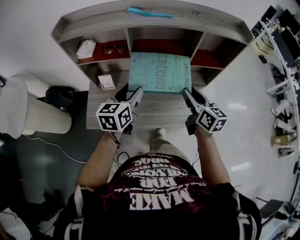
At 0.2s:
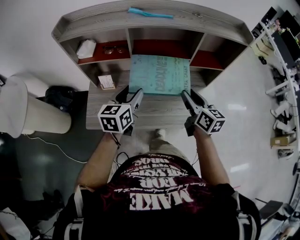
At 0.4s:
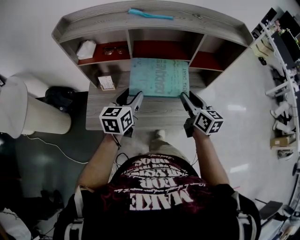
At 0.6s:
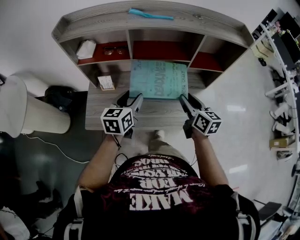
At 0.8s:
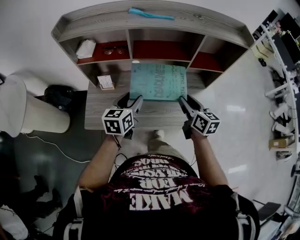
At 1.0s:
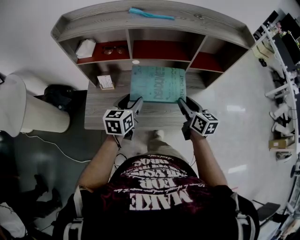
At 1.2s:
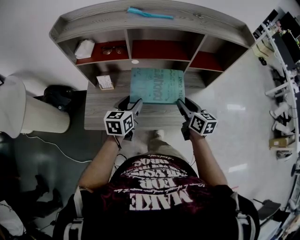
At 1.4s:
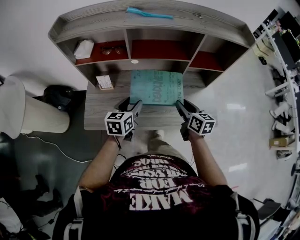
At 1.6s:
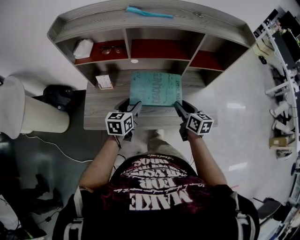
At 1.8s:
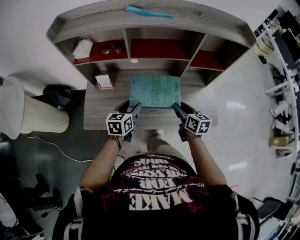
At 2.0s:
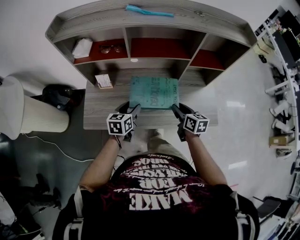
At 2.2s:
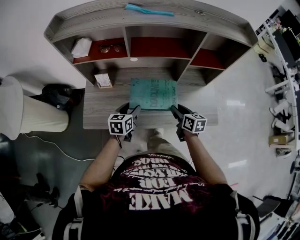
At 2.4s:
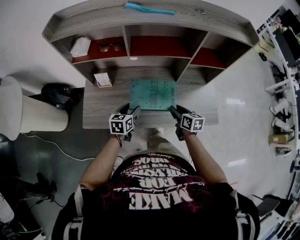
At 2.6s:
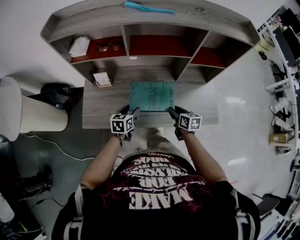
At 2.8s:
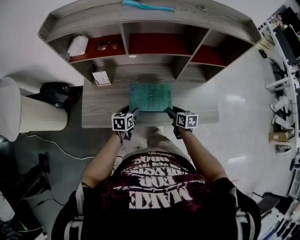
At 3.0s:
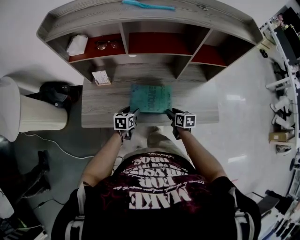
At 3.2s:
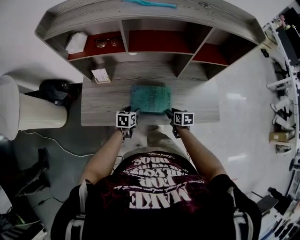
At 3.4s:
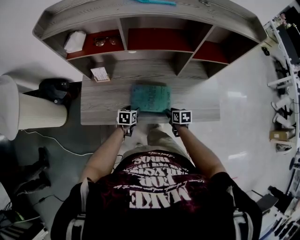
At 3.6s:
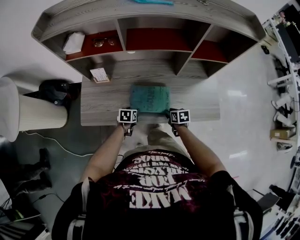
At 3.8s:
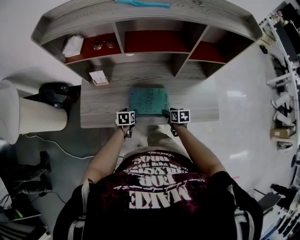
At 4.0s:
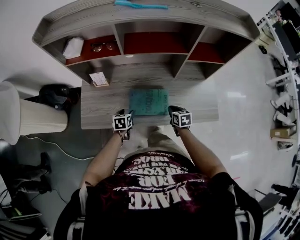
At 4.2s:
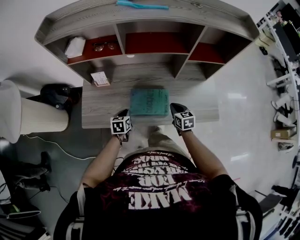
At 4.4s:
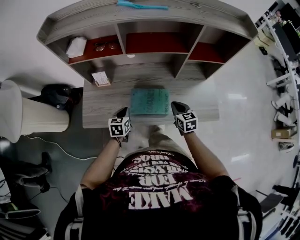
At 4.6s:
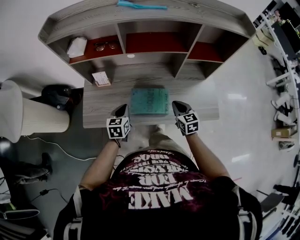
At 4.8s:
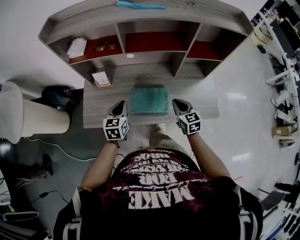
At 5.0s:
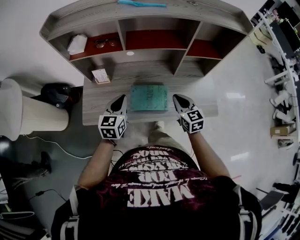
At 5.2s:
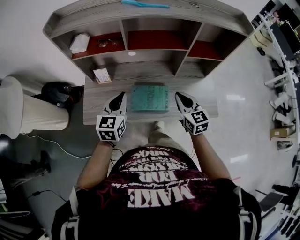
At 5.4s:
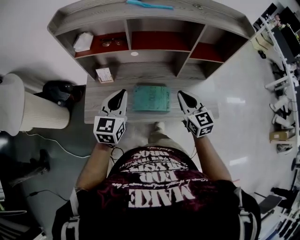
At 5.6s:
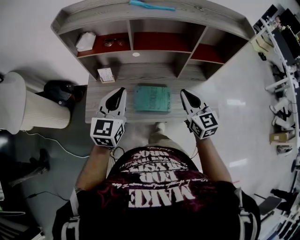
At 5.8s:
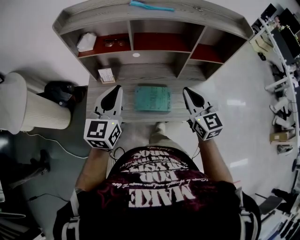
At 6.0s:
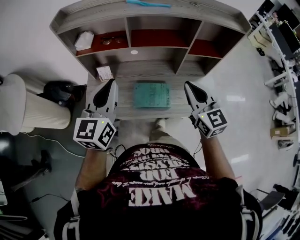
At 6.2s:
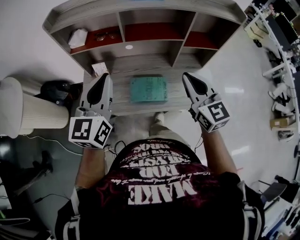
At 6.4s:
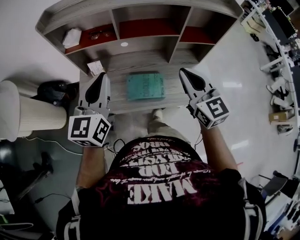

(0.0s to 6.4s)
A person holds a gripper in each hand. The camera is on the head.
0.0s - 1.6s: The two grippers go some 15 cm downward.
1.6s - 3.2s: Both grippers move downward, roughly 20 cm. The right gripper changes its angle by about 30 degrees; the left gripper rotates approximately 20 degrees.
3.2s - 4.8s: Both grippers travel together upward, some 15 cm. The left gripper swivels about 30 degrees, and closes. The right gripper rotates some 40 degrees, and closes its fingers.
4.8s - 6.4s: Both grippers travel together upward, some 25 cm. The right gripper rotates about 20 degrees. The left gripper changes its angle by about 30 degrees.

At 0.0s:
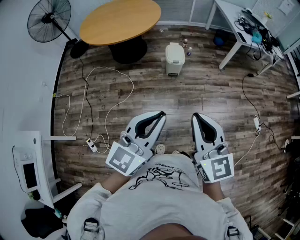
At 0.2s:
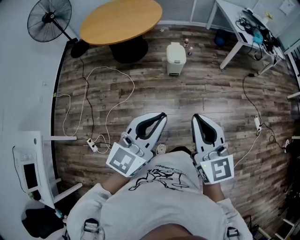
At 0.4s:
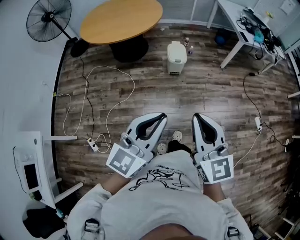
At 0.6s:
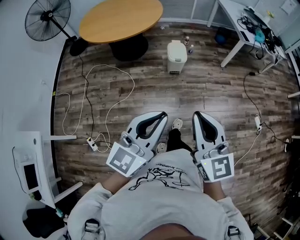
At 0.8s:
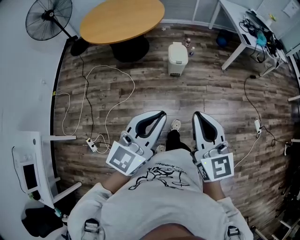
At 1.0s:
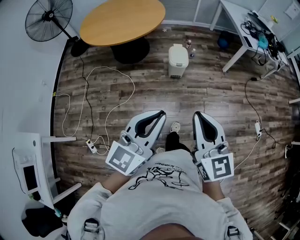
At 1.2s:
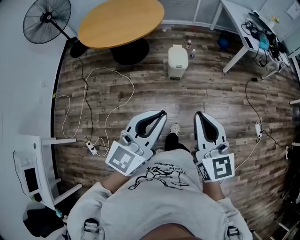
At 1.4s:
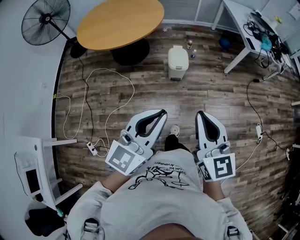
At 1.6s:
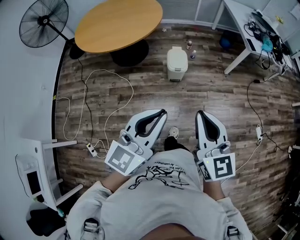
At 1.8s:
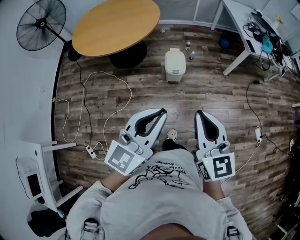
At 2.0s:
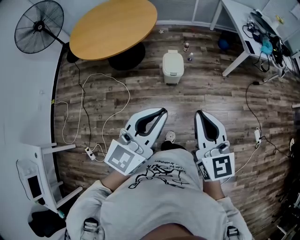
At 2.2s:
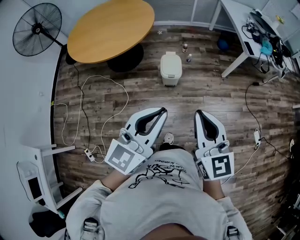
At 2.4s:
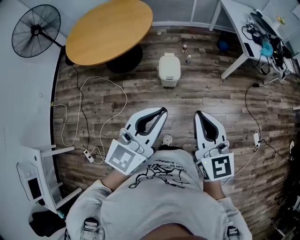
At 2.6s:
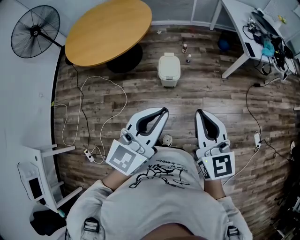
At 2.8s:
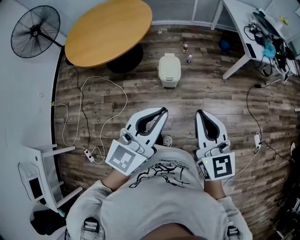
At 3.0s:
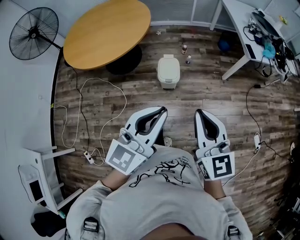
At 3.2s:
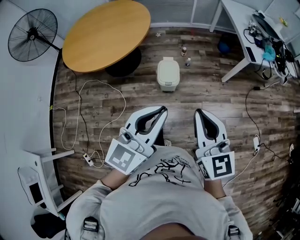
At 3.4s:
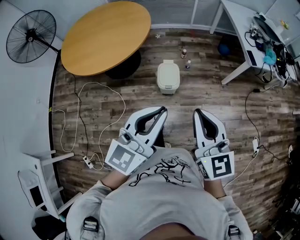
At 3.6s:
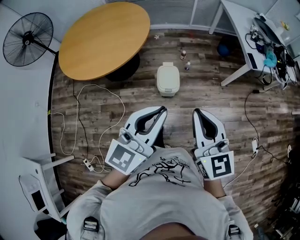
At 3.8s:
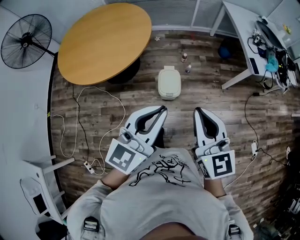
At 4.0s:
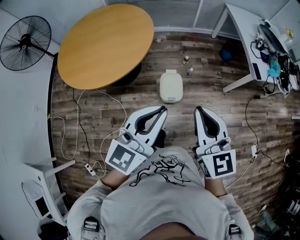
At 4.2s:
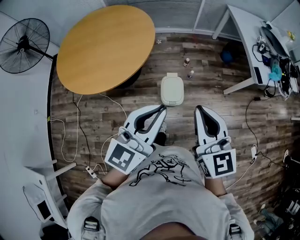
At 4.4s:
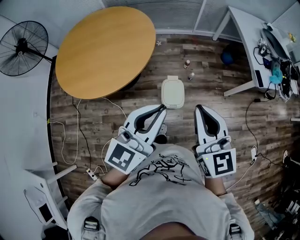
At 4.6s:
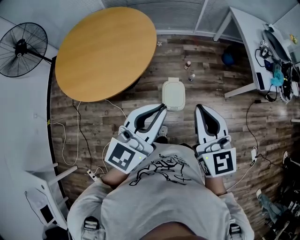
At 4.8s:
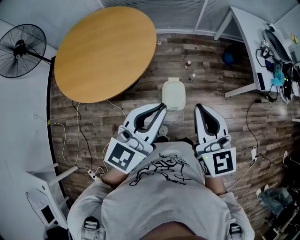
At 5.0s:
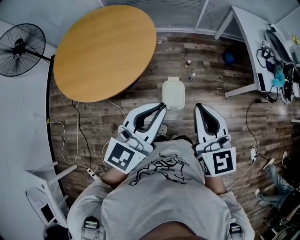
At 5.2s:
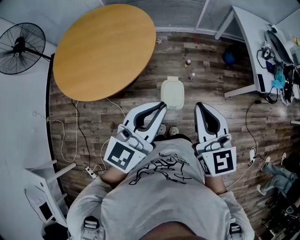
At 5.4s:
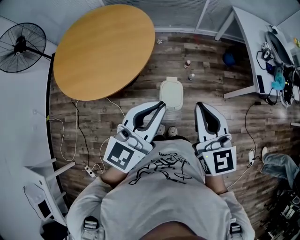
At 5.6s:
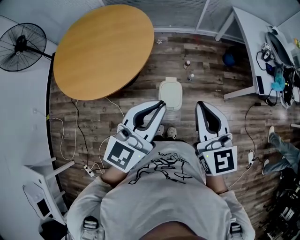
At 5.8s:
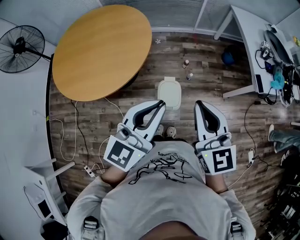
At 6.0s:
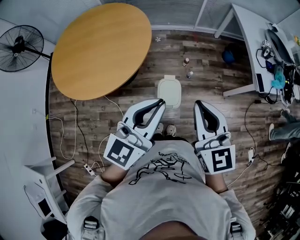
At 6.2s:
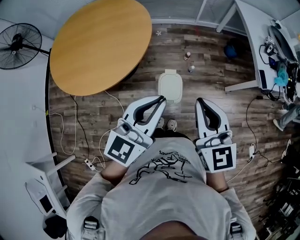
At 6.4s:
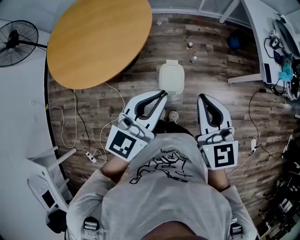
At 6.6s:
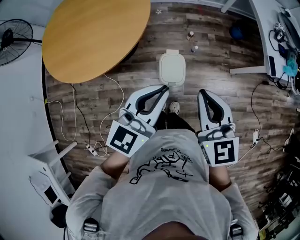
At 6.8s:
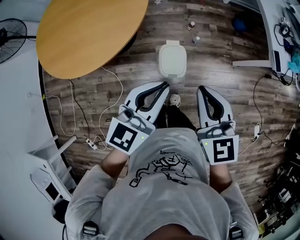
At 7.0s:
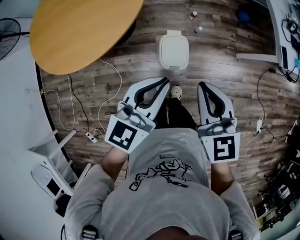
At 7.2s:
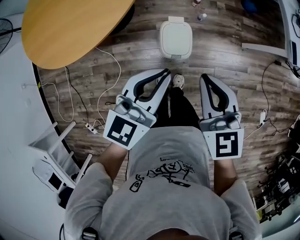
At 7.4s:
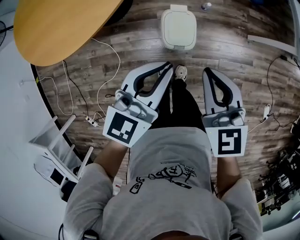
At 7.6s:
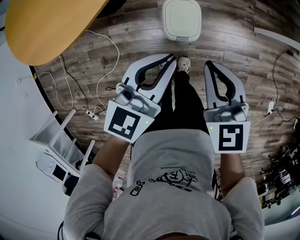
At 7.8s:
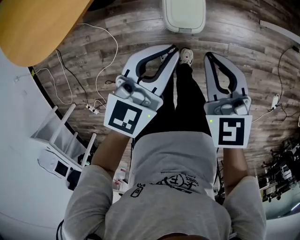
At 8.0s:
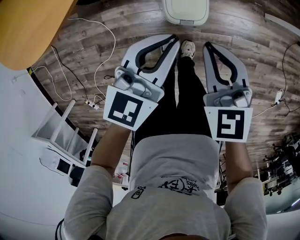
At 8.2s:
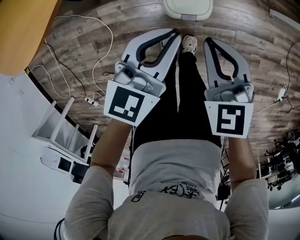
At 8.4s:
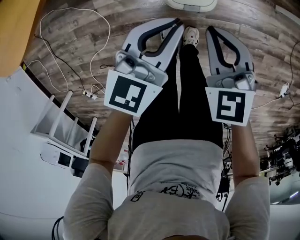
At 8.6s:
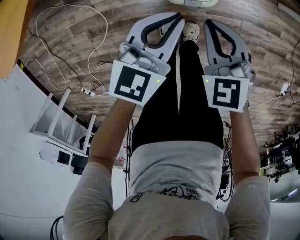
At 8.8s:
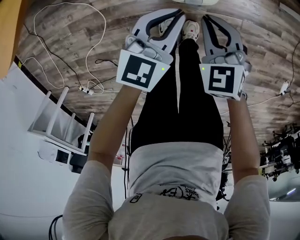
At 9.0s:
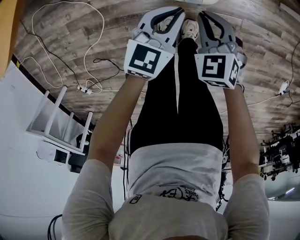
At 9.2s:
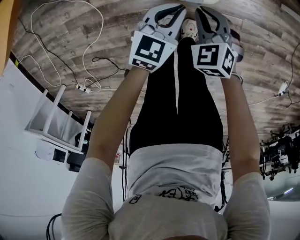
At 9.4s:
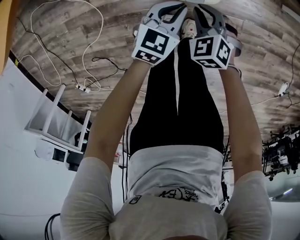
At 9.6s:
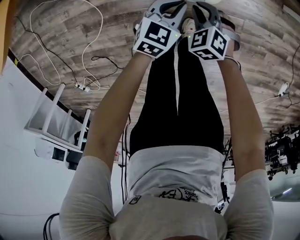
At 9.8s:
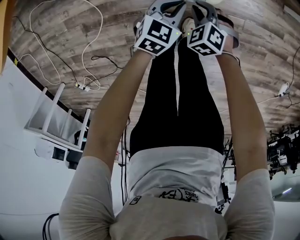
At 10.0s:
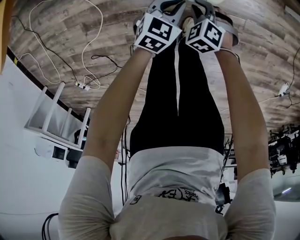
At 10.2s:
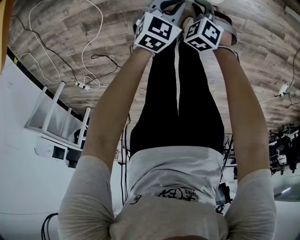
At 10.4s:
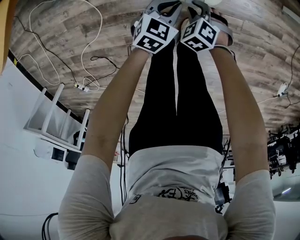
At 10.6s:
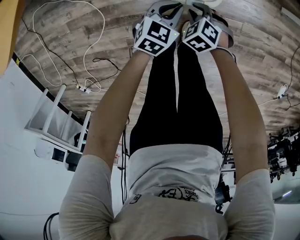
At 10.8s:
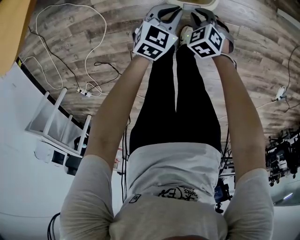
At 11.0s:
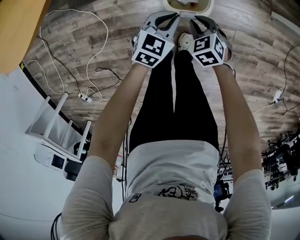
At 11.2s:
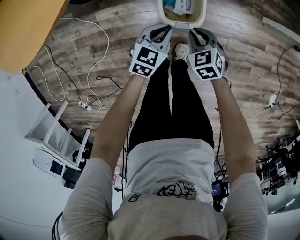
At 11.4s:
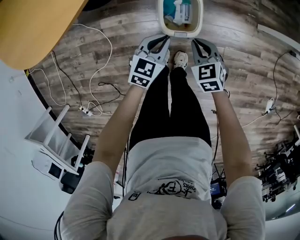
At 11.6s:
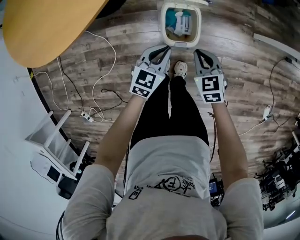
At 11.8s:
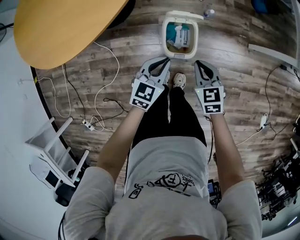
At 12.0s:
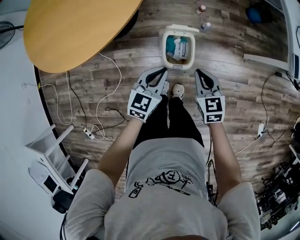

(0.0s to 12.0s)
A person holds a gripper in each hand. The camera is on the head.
0.0s - 1.6s: Both grippers travel together forward, roughly 20 cm.
1.6s - 3.0s: The two grippers go some 20 cm forward and to the right.
3.0s - 4.4s: The grippers both shift forward and to the left by about 30 cm.
4.4s - 6.0s: The two grippers go about 5 cm forward.
6.0s - 7.6s: Both grippers travel together downward, approximately 30 cm. The right gripper turns by roughly 20 degrees.
7.6s - 9.0s: The two grippers go roughly 35 cm downward. The right gripper turns by roughly 30 degrees.
9.0s - 10.4s: Both grippers travel together downward, roughly 15 cm. The right gripper swivels some 20 degrees.
10.4s - 12.0s: Both grippers travel together upward, approximately 35 cm. The right gripper tips its fingers upward by about 30 degrees, and closes its fingers. The left gripper swivels approximately 20 degrees.

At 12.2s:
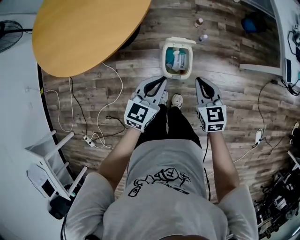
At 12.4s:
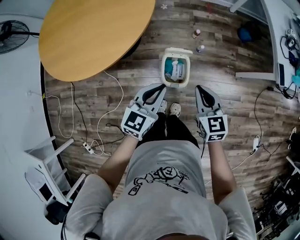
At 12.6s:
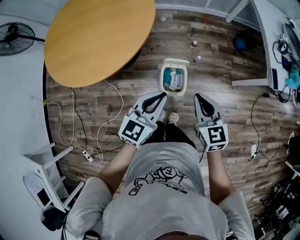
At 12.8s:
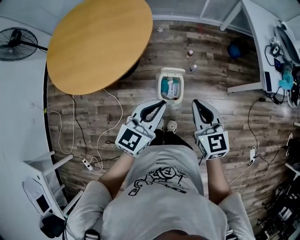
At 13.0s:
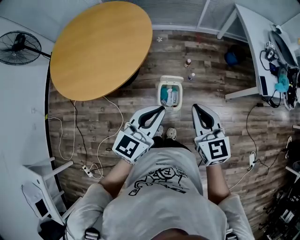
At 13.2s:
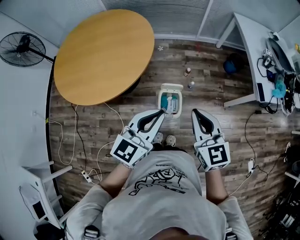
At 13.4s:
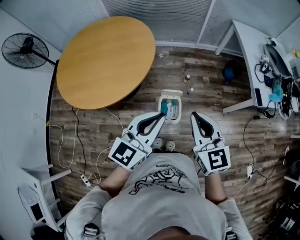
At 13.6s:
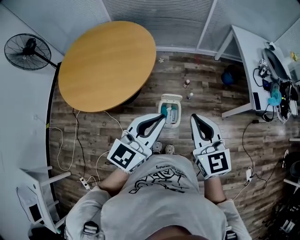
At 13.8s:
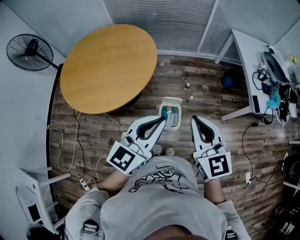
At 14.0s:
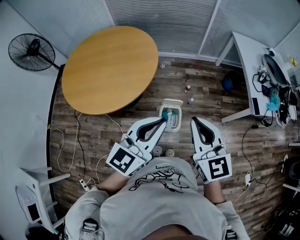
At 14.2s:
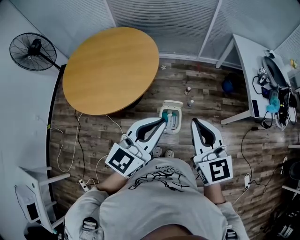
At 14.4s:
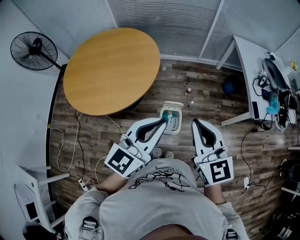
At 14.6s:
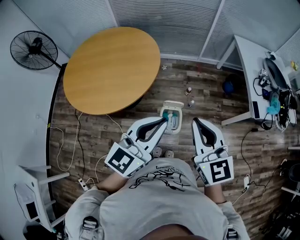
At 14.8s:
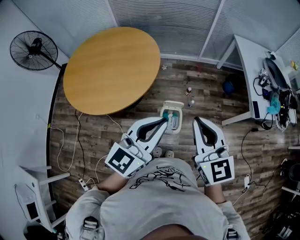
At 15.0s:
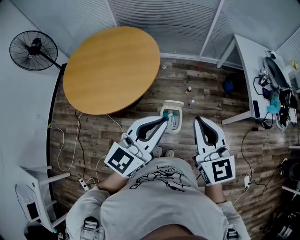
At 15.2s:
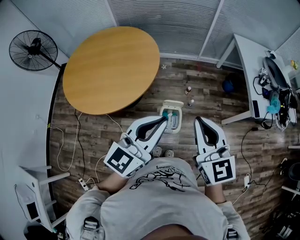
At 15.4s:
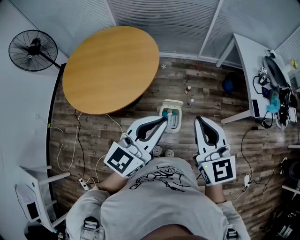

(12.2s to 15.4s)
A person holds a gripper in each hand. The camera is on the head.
12.2s - 13.8s: The two grippers go some 35 cm upward. The left gripper swivels approximately 20 degrees, while the right gripper swivels roughly 30 degrees.
13.8s - 15.4s: The grippers stay close to where they were, moving slightly.

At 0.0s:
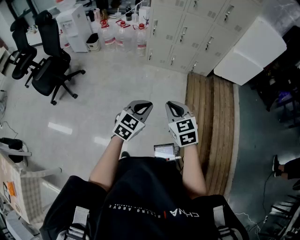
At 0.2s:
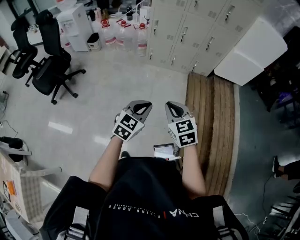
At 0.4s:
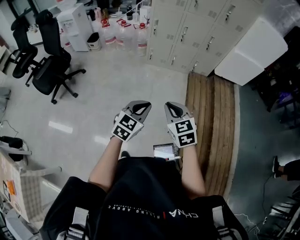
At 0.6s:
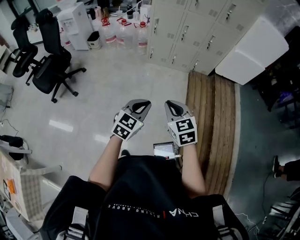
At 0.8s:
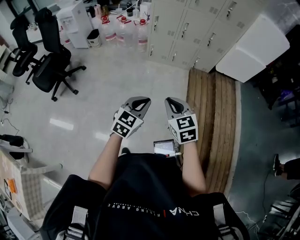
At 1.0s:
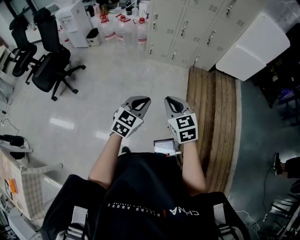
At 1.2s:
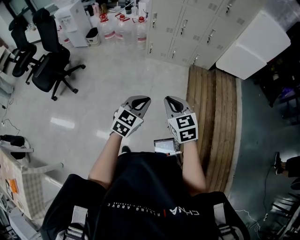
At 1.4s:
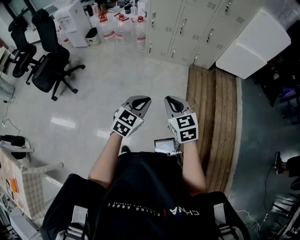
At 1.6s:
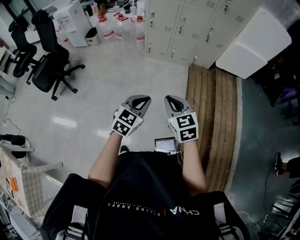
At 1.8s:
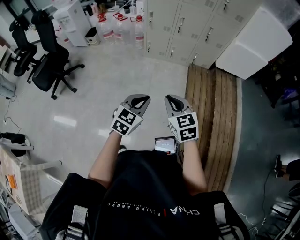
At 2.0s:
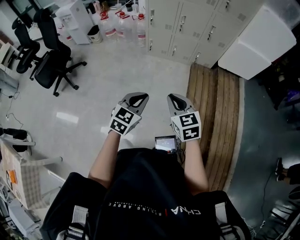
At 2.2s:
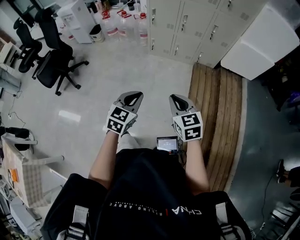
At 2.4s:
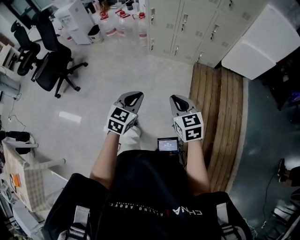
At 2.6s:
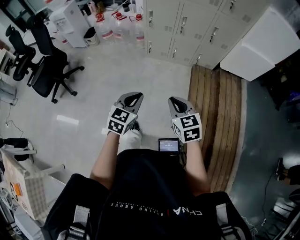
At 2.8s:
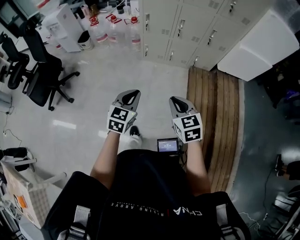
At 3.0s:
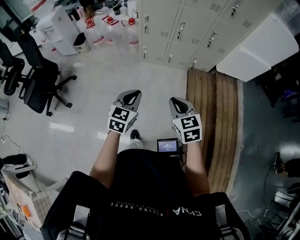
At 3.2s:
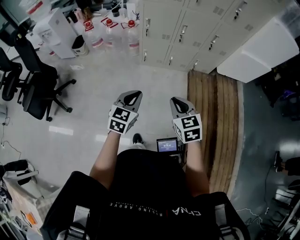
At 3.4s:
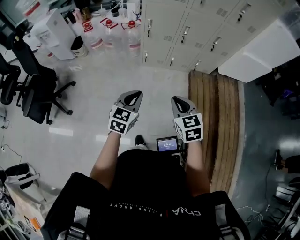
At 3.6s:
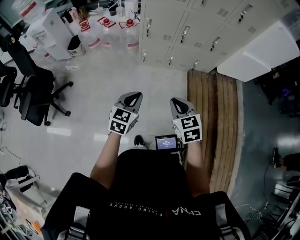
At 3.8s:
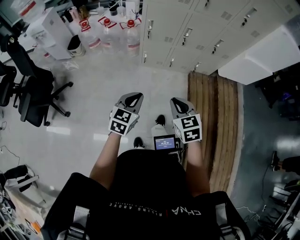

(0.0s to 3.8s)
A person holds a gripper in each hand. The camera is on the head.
0.0s - 1.2s: The grippers make only small movements.
1.2s - 2.6s: The right gripper is displaced forward and to the right by about 15 cm, while the left gripper travels forward by roughly 15 cm.
2.6s - 3.8s: Both grippers move forward and to the left, roughly 25 cm.
